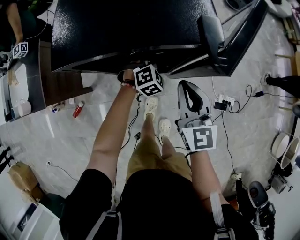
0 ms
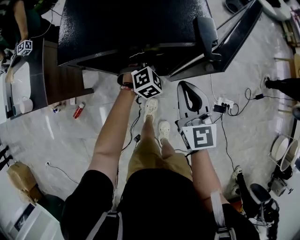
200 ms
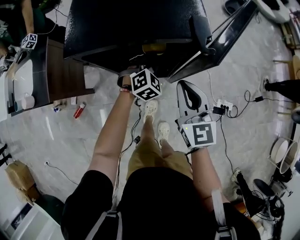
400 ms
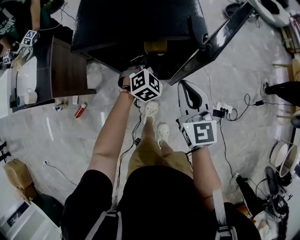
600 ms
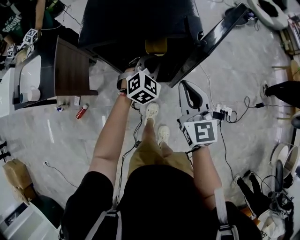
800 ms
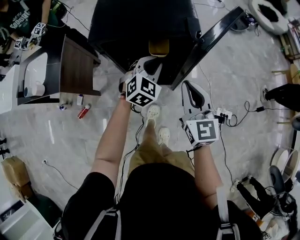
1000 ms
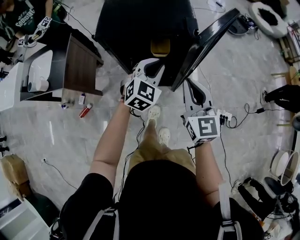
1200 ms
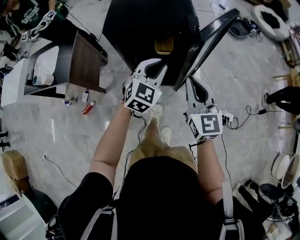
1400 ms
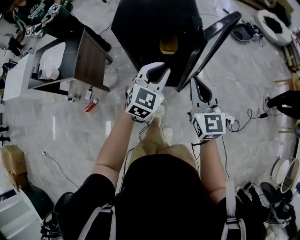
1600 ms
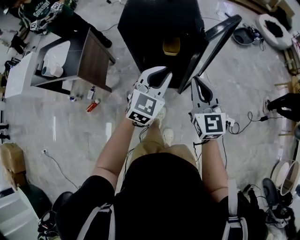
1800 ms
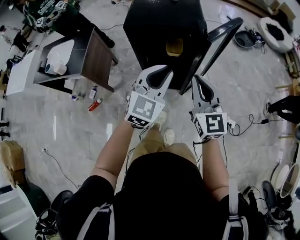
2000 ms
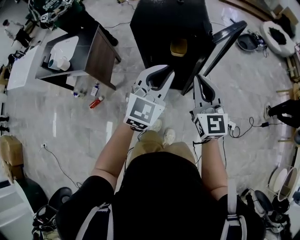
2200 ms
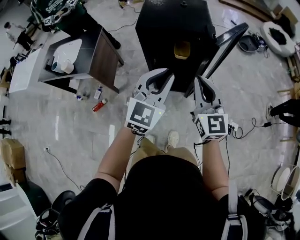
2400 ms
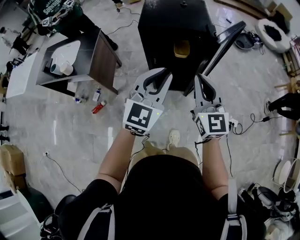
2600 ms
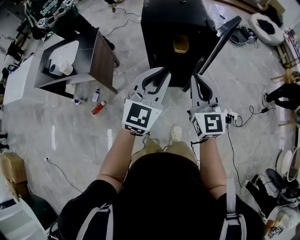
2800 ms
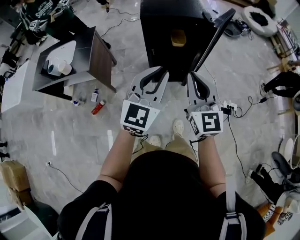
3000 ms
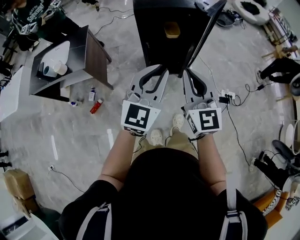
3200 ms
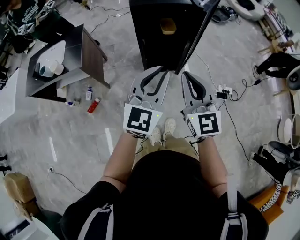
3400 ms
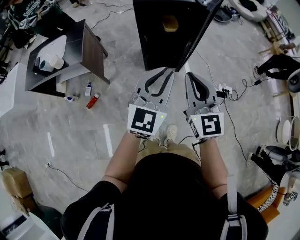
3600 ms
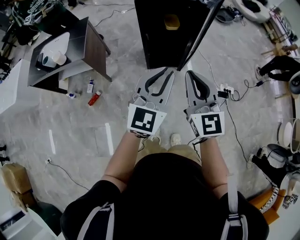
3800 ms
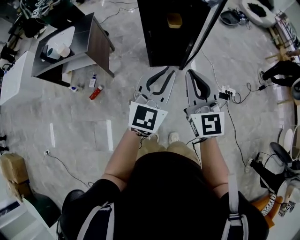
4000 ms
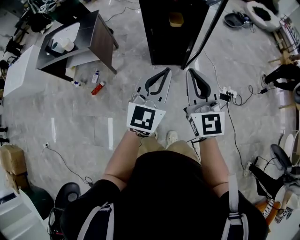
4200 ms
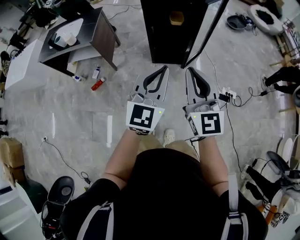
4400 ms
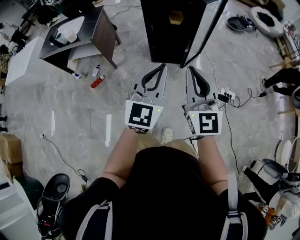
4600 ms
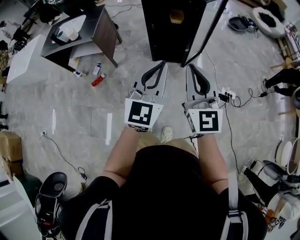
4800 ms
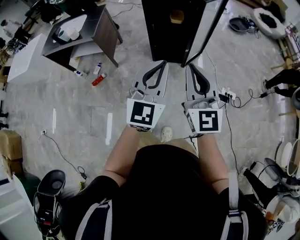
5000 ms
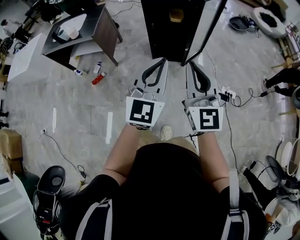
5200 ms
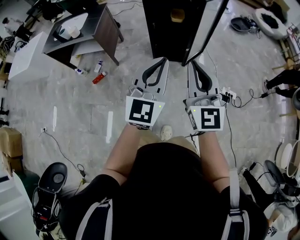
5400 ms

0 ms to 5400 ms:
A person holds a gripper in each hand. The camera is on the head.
0 ms to 1400 ms: The right gripper heads backward and upward, covering roughly 20 cm. Meanwhile the left gripper shifts about 35 cm upward and backward, and swivels about 30 degrees.
1400 ms to 2800 ms: The right gripper moves backward, to the left and upward, some 25 cm. The left gripper travels backward, upward and to the left by about 30 cm.
2800 ms to 4000 ms: Both grippers move backward, about 20 cm.
4000 ms to 5400 ms: Both grippers move backward and to the right, about 15 cm.

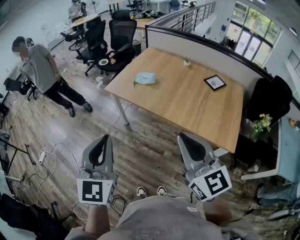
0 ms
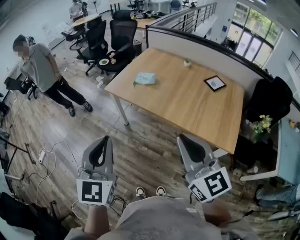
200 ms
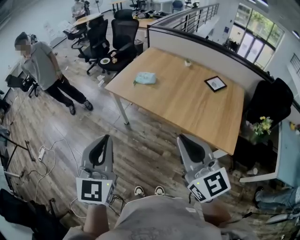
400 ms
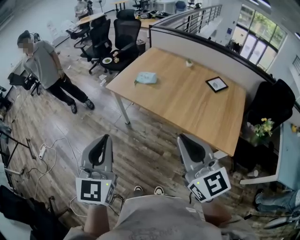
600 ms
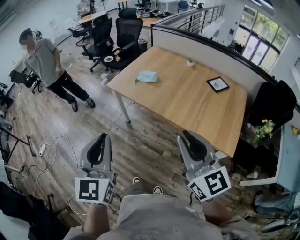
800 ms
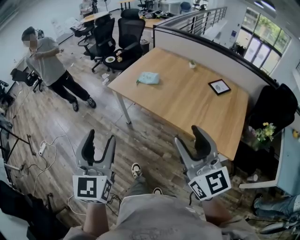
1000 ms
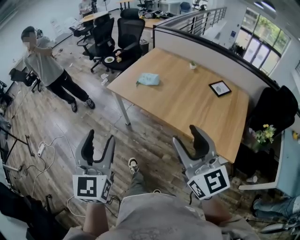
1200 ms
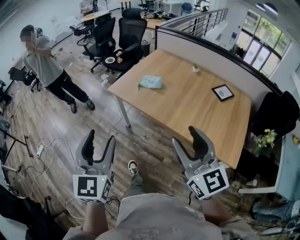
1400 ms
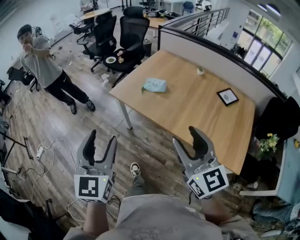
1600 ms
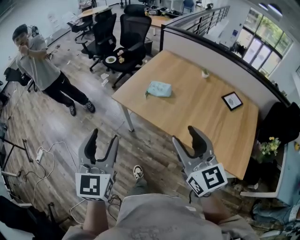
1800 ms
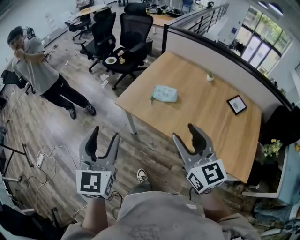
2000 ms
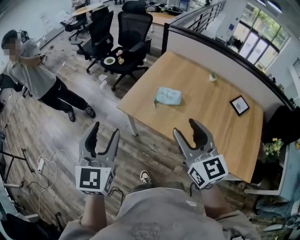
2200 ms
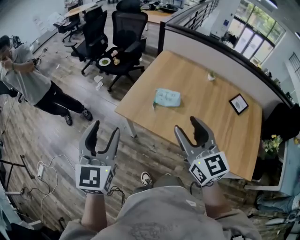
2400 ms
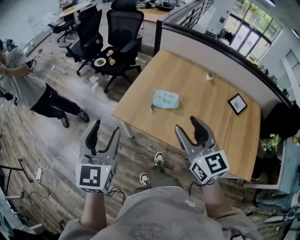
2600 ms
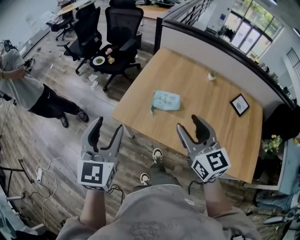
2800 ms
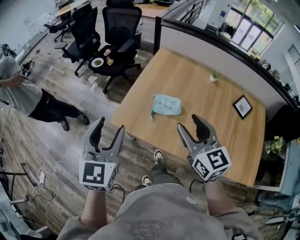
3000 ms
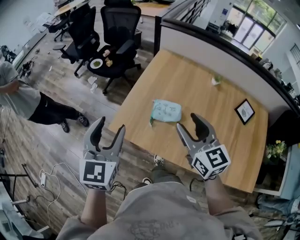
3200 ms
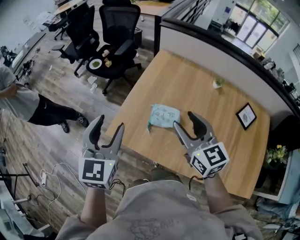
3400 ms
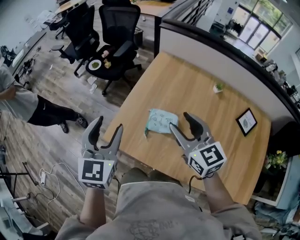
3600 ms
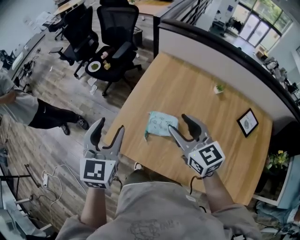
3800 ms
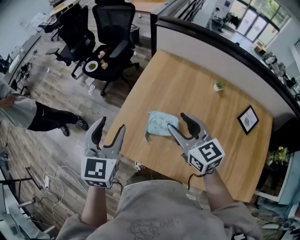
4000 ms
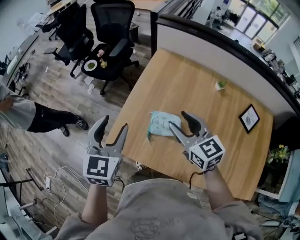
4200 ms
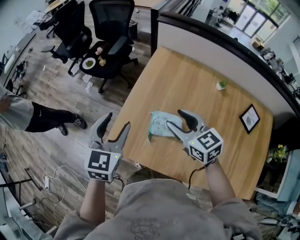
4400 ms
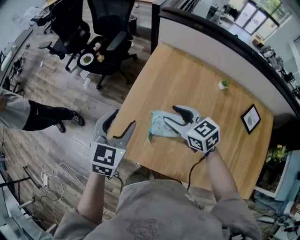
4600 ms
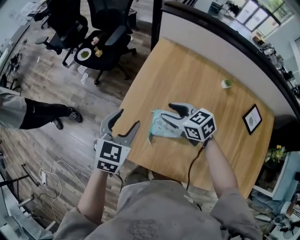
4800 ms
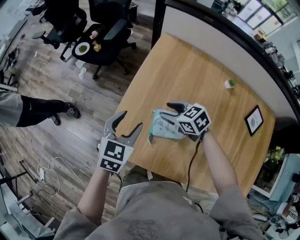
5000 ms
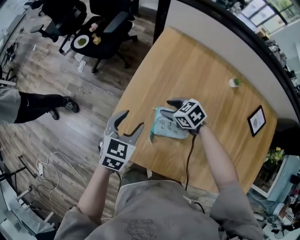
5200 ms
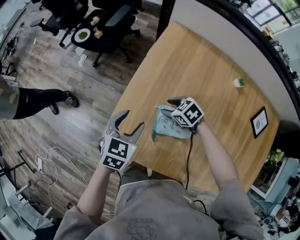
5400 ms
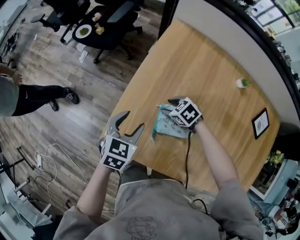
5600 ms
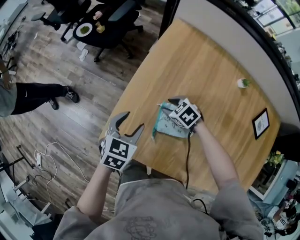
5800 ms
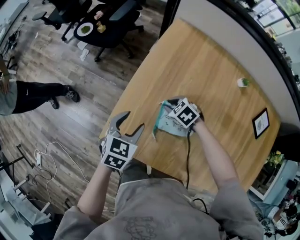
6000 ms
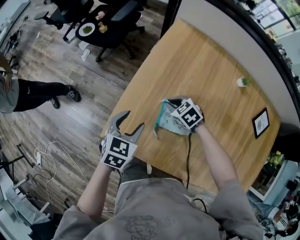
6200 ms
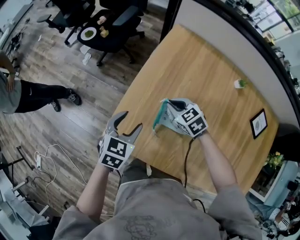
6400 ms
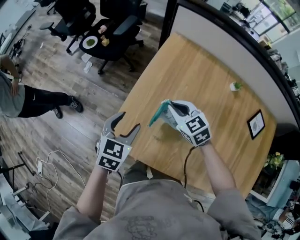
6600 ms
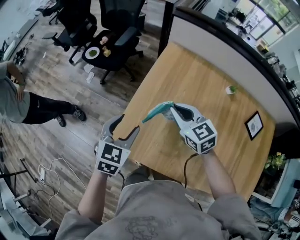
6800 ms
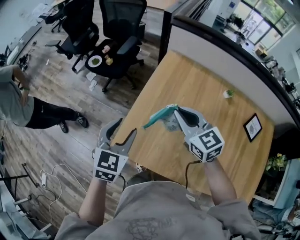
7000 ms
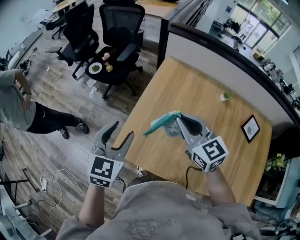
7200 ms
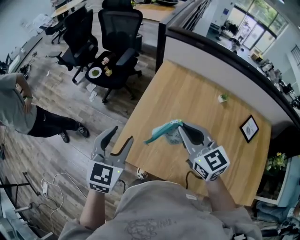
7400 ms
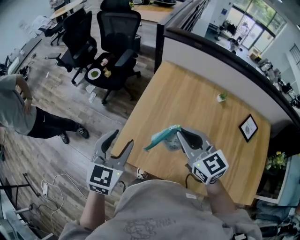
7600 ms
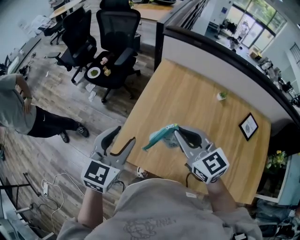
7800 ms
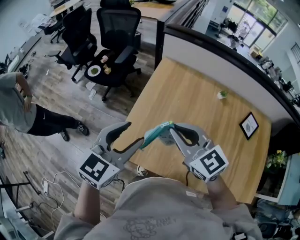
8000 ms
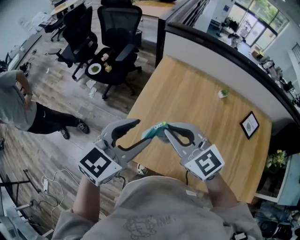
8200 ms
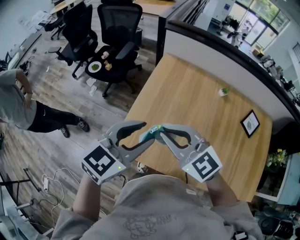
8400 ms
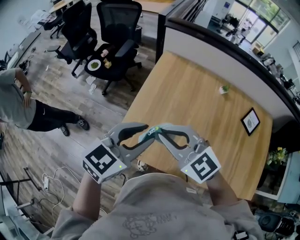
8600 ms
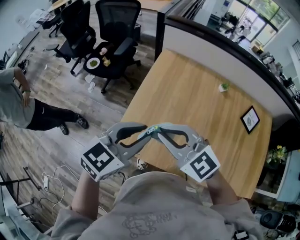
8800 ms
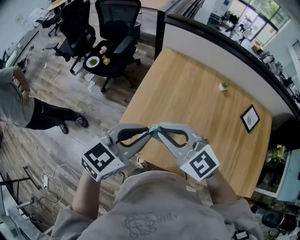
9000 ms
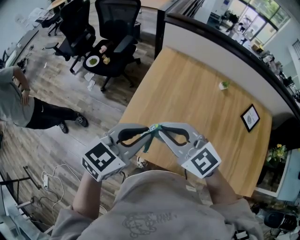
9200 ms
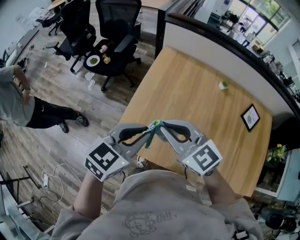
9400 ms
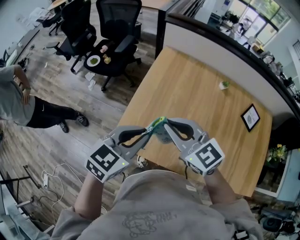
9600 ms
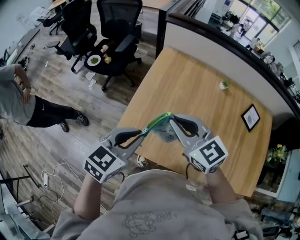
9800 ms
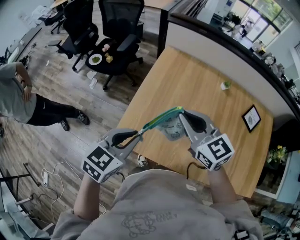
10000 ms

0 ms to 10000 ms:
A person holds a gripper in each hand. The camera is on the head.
0 ms to 1400 ms: Both grippers move forward, roughly 5 cm. The right gripper opens up. The left gripper opens up.
1400 ms to 2800 ms: Both grippers are carried forward, some 40 cm.
2800 ms to 4200 ms: Both grippers move forward, roughly 25 cm.
4200 ms to 5800 ms: The grippers both shift downward by about 30 cm. The right gripper tilts its fingers roughly 40 degrees downward, while the left gripper turns by roughly 30 degrees.
5800 ms to 7200 ms: The right gripper moves upward, about 35 cm, tilts its fingers roughly 50 degrees upward, and closes up. Meanwhile the left gripper shifts approximately 25 cm upward, and rotates approximately 20 degrees.
7200 ms to 8600 ms: The left gripper is displaced to the right and backward by roughly 10 cm, and turns by about 30 degrees, while the right gripper goes roughly 10 cm backward and to the left, and rotates some 20 degrees.
8600 ms to 10000 ms: The left gripper is displaced downward by some 5 cm, and closes up; the right gripper moves to the right, approximately 5 cm, and swivels some 20 degrees.

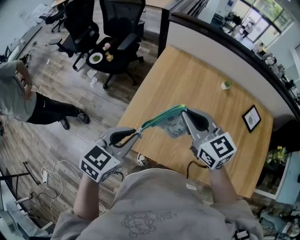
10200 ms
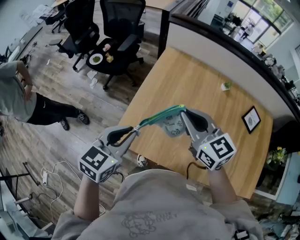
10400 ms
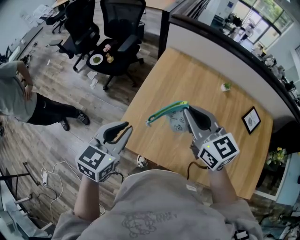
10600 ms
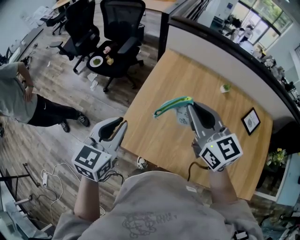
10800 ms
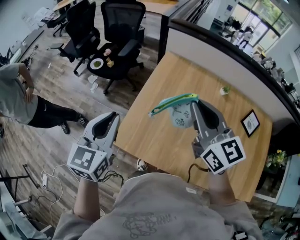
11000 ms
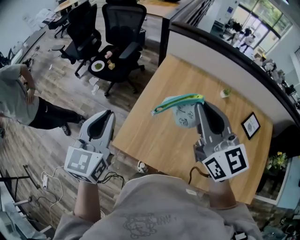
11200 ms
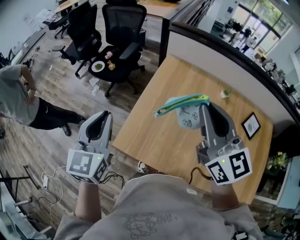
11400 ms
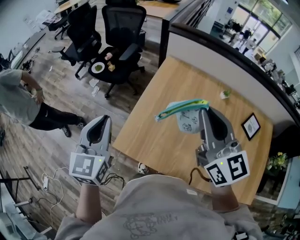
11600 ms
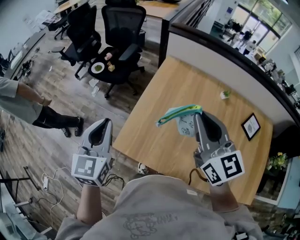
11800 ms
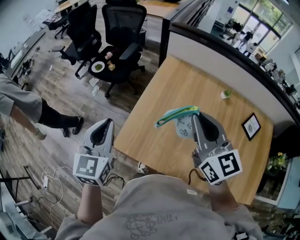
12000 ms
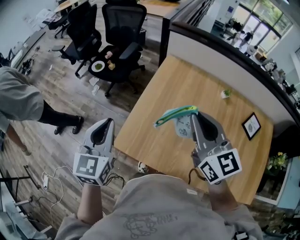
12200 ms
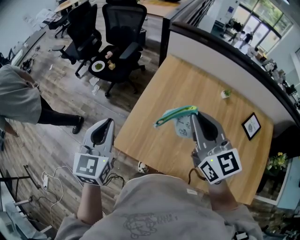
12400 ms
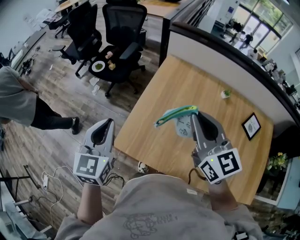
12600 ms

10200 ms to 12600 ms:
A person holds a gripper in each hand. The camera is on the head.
10200 ms to 11400 ms: The left gripper travels upward, to the left and forward by some 15 cm, and swivels roughly 40 degrees, while the right gripper is displaced upward by approximately 15 cm, and changes its angle by some 20 degrees.
11400 ms to 12600 ms: The right gripper is displaced downward by some 5 cm.

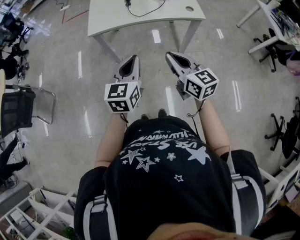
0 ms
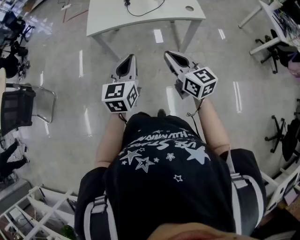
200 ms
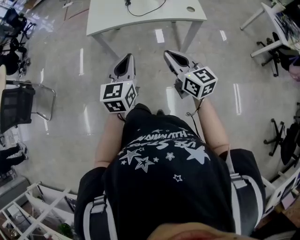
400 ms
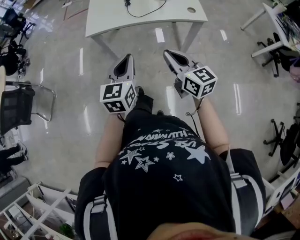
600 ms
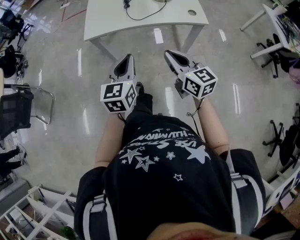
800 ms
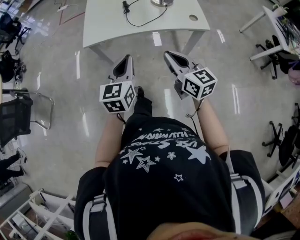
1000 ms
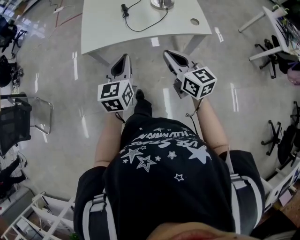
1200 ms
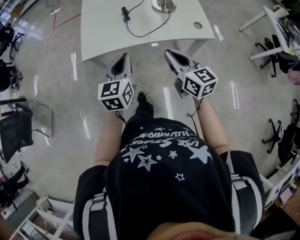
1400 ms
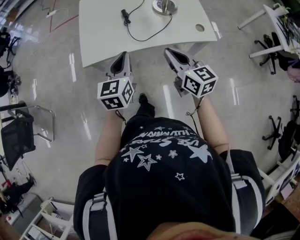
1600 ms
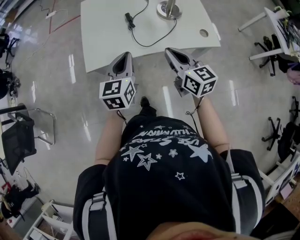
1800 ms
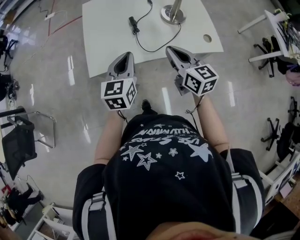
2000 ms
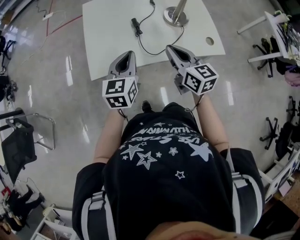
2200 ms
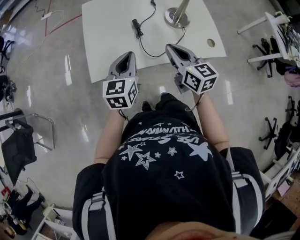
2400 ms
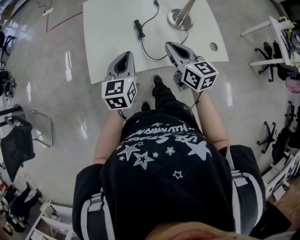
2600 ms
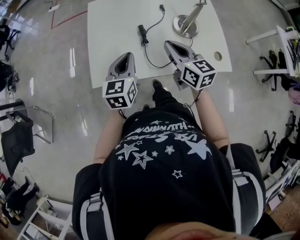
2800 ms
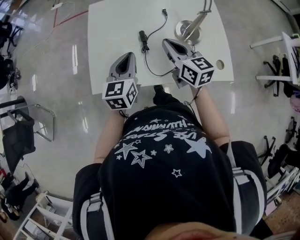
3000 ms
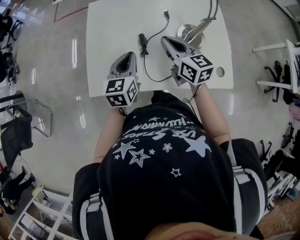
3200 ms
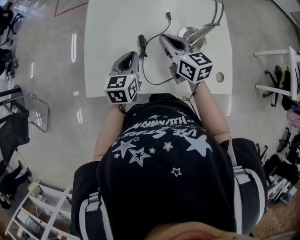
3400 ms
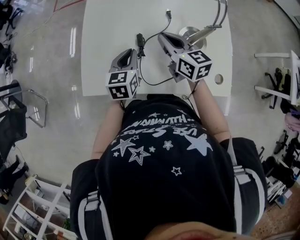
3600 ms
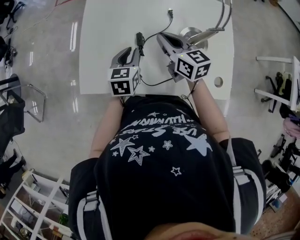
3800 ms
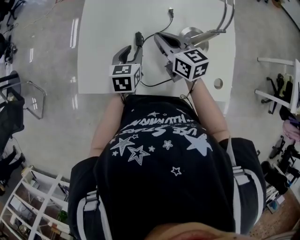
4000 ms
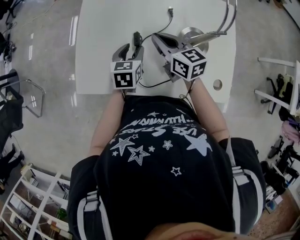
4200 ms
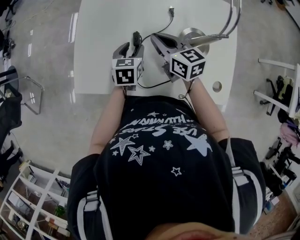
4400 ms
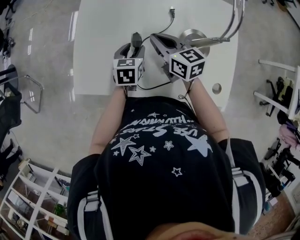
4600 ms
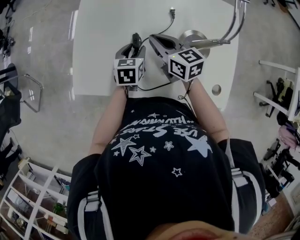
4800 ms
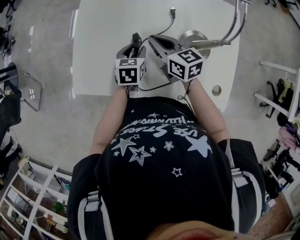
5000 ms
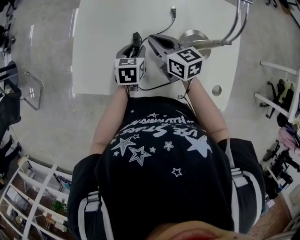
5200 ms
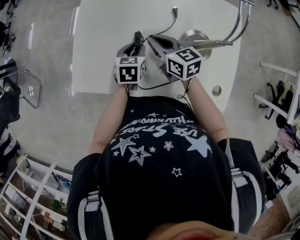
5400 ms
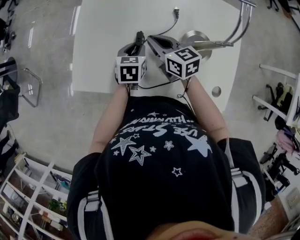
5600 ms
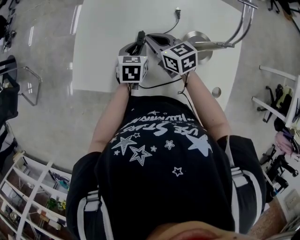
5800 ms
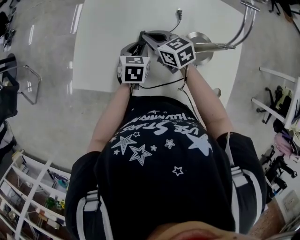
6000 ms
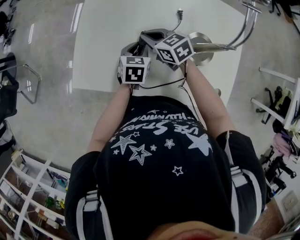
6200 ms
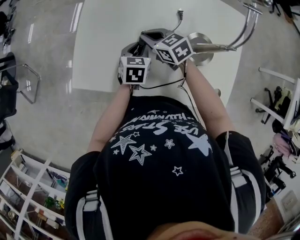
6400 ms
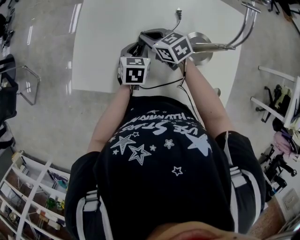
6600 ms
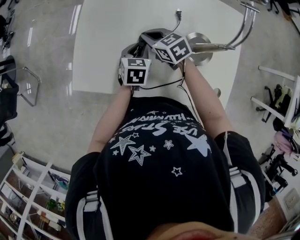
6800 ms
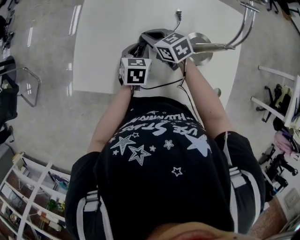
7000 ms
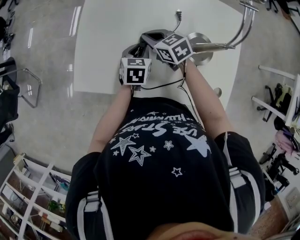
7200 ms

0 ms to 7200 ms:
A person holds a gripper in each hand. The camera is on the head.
0 ms to 1400 ms: Both grippers travel together forward, roughly 20 cm.
1400 ms to 2800 ms: The two grippers go some 25 cm forward.
2800 ms to 4400 ms: The left gripper heads downward, forward and to the right, covering approximately 20 cm, swivels about 30 degrees, and opens its fingers; the right gripper travels forward and downward by some 15 cm, and swivels about 20 degrees.
4400 ms to 5800 ms: The right gripper ends up approximately 5 cm from where it was.
5800 ms to 7200 ms: The grippers move only a little.
